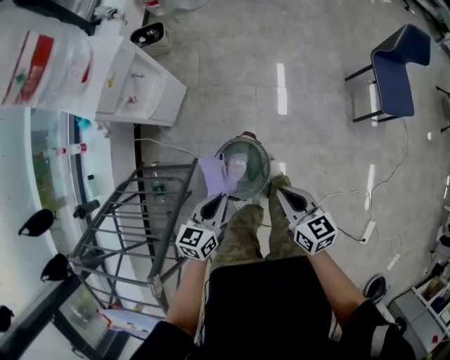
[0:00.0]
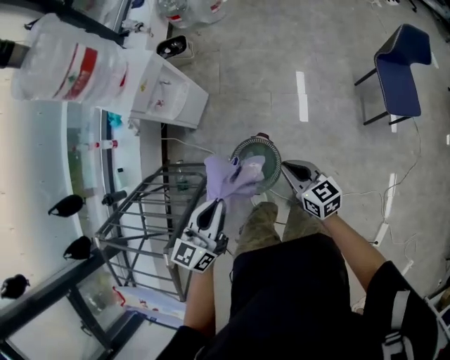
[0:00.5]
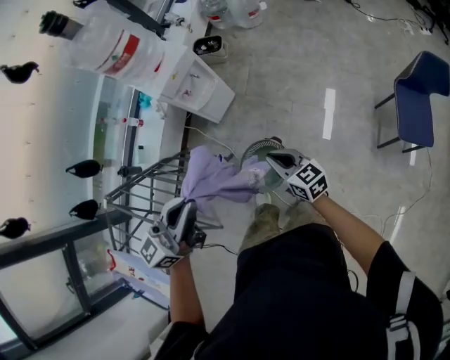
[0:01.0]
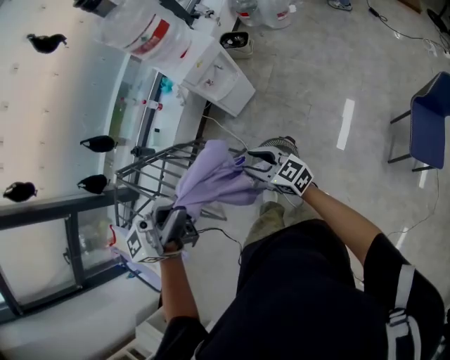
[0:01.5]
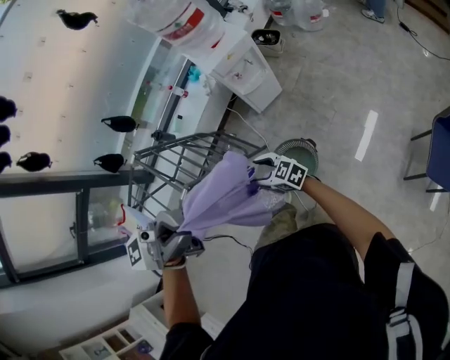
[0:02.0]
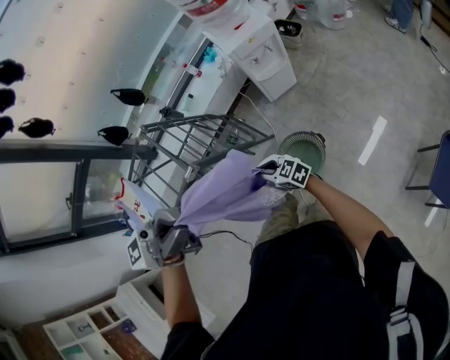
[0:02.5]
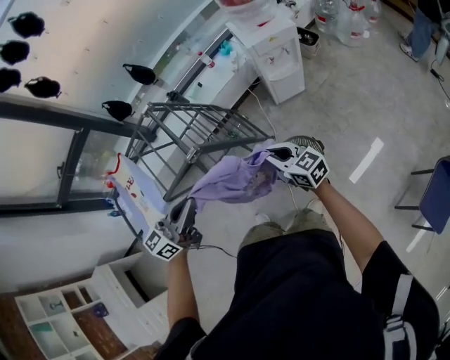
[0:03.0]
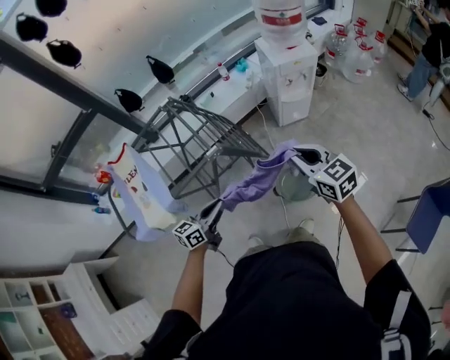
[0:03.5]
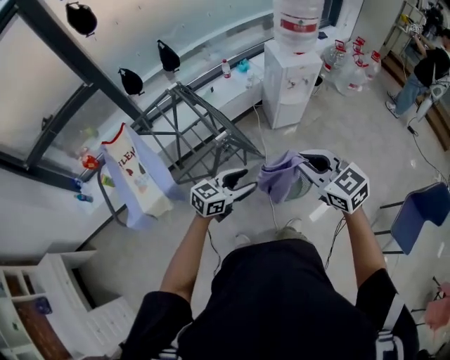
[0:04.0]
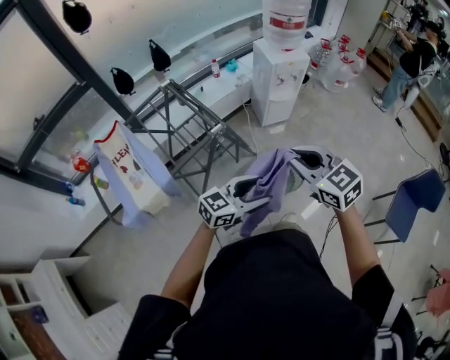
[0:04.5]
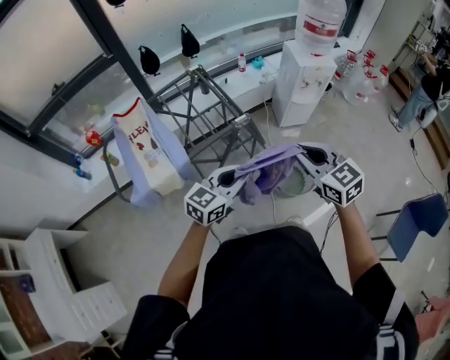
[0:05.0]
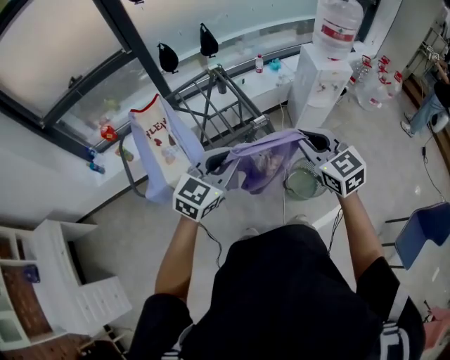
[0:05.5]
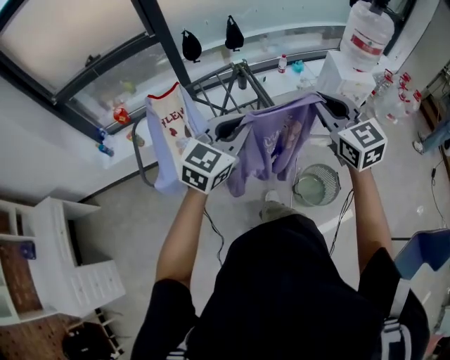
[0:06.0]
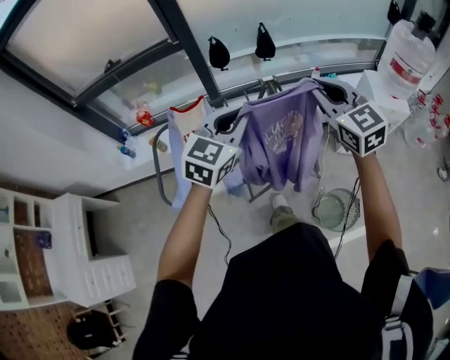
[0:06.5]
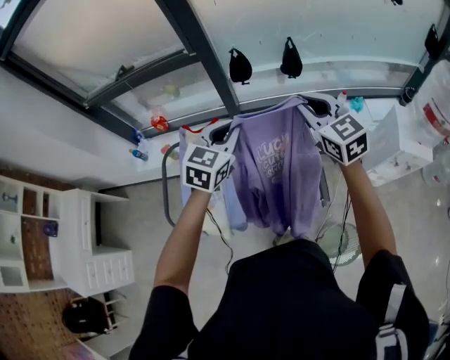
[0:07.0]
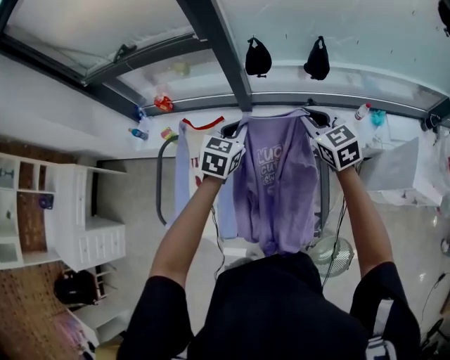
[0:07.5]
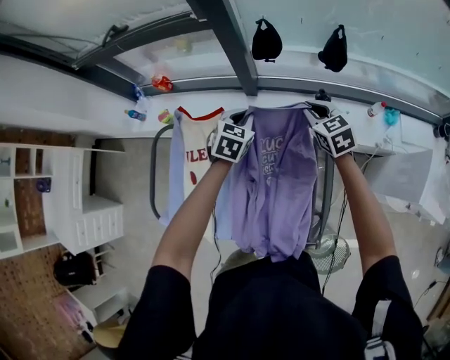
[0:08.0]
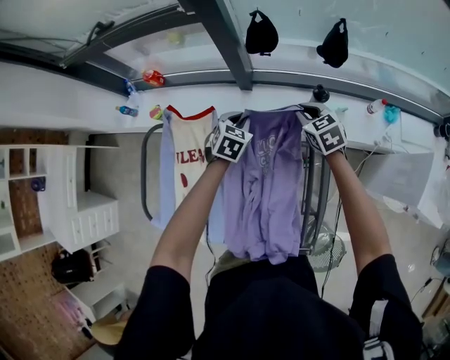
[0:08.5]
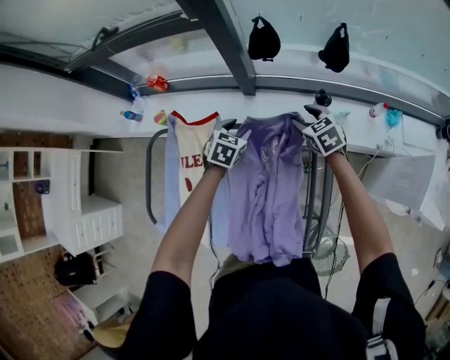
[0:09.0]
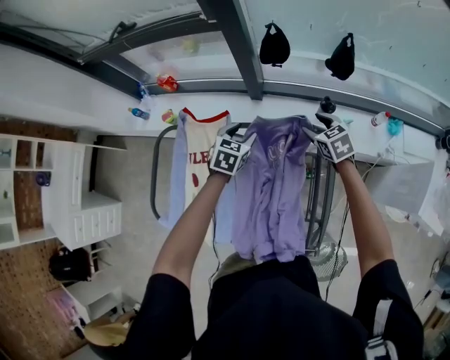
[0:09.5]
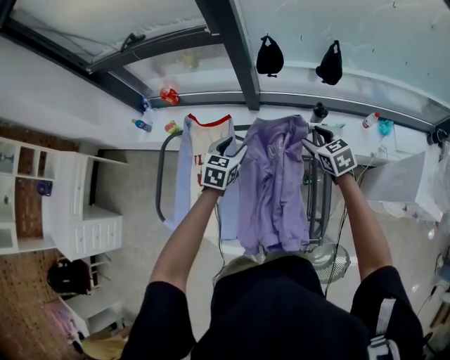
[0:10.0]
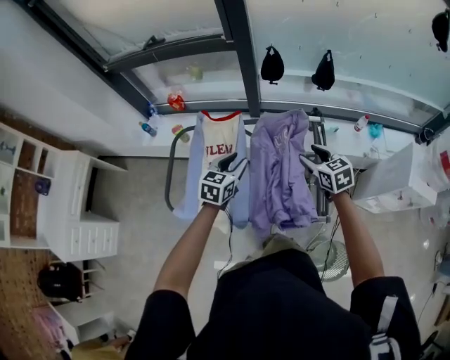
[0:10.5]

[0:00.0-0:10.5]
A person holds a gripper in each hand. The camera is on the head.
0:00.0 to 0:02.0: The right gripper ends up roughly 20 cm from where it was, swivels about 80 degrees, and opens up. The left gripper moves upward, about 60 cm, and tilts its fingers some 50 degrees upward.
0:02.0 to 0:04.0: The left gripper moves downward, about 30 cm, points its fingers approximately 30 degrees further downward, and opens up; the right gripper heads upward, covering roughly 25 cm, turns by roughly 20 degrees, and closes.
0:04.0 to 0:06.5: The left gripper changes place by some 40 cm, turns by approximately 50 degrees, and closes; the right gripper shifts by approximately 40 cm, and changes its angle by some 20 degrees.
0:06.5 to 0:08.5: The left gripper travels downward by approximately 35 cm, and points its fingers approximately 40 degrees further downward. Meanwhile the right gripper ends up some 60 cm from where it was, and tips its fingers downward by approximately 30 degrees.
0:08.5 to 0:10.5: The right gripper goes roughly 25 cm backward and upward, and opens its fingers. The left gripper heads backward, upward and to the left, covering roughly 30 cm, rotates approximately 20 degrees, and opens.

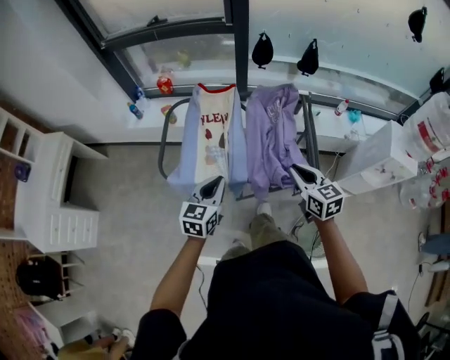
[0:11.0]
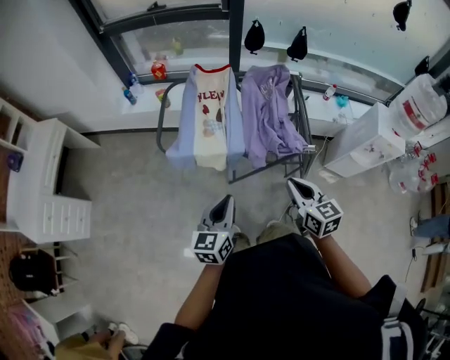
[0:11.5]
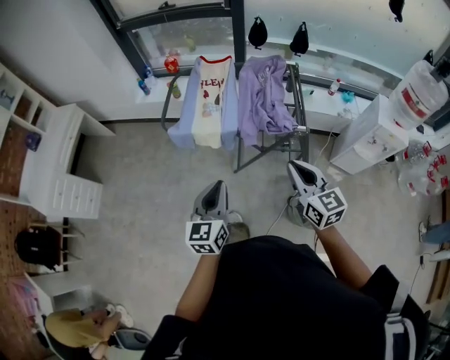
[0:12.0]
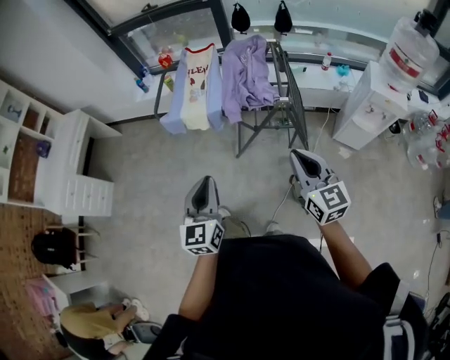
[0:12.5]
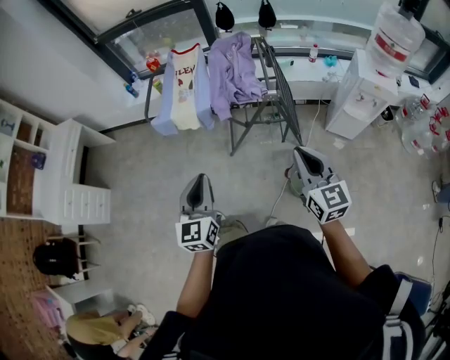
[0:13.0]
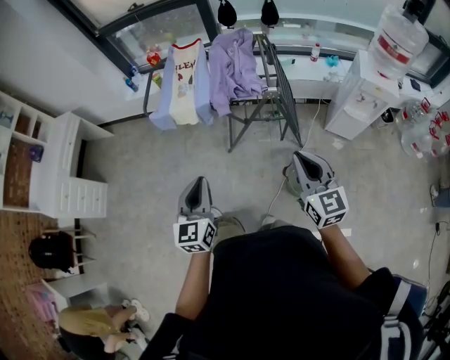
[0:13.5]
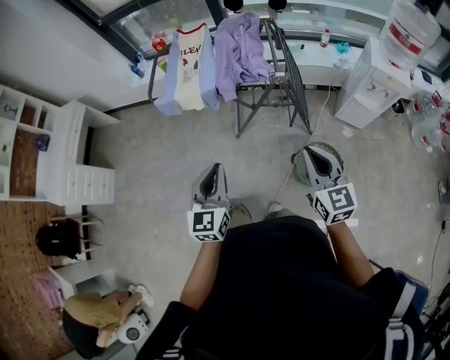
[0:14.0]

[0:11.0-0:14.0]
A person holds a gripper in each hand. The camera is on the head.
0:11.0 to 0:12.5: The two grippers go approximately 35 cm backward. The left gripper changes its angle by approximately 20 degrees.
0:12.5 to 0:14.0: The left gripper changes place by roughly 5 cm. The right gripper heads backward, covering roughly 5 cm.

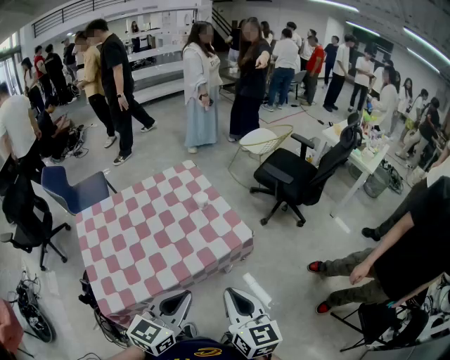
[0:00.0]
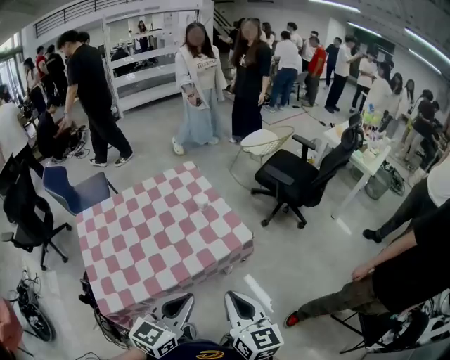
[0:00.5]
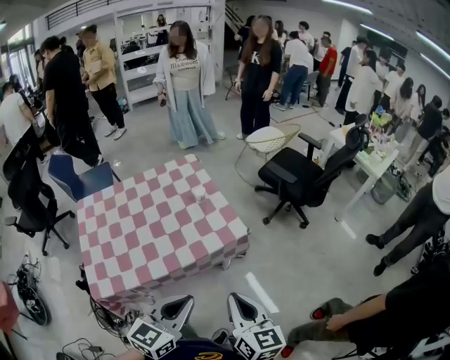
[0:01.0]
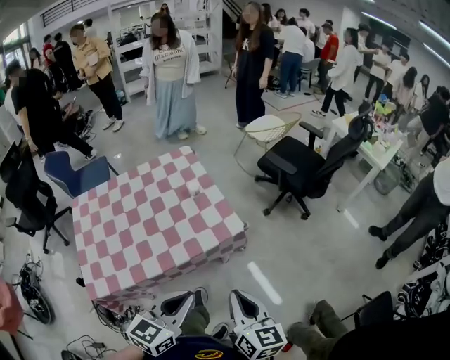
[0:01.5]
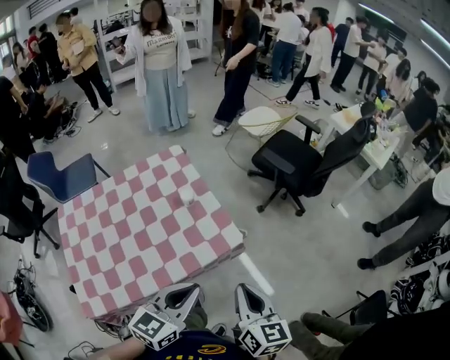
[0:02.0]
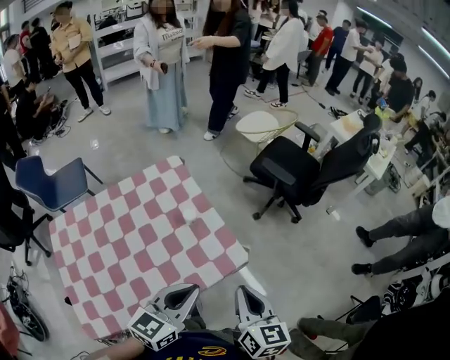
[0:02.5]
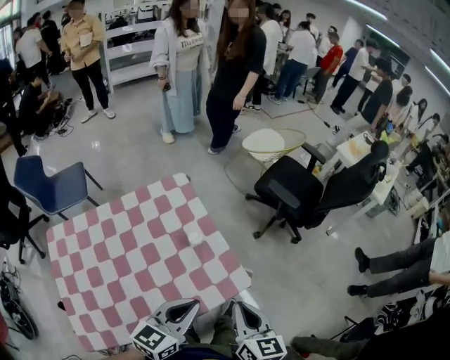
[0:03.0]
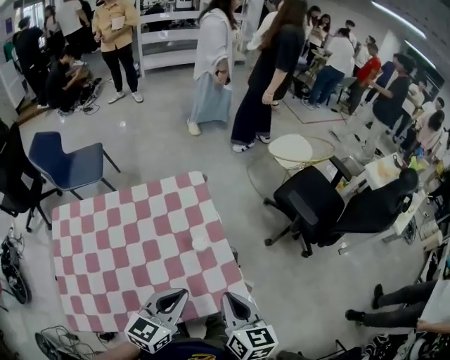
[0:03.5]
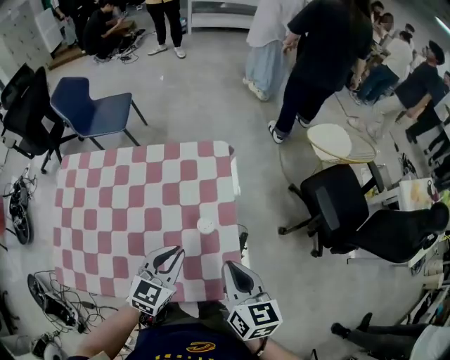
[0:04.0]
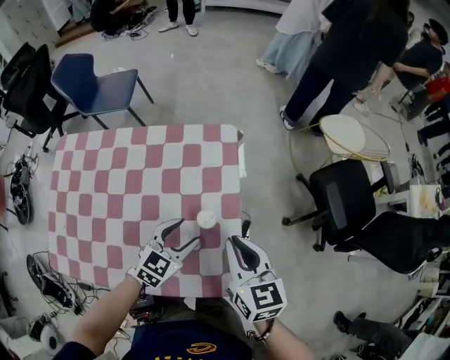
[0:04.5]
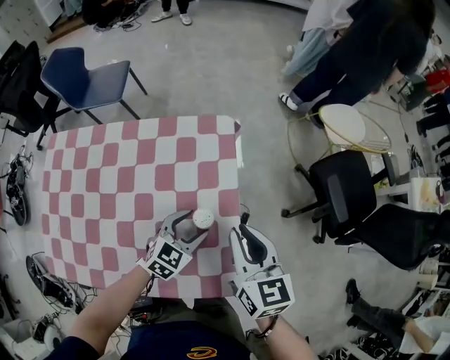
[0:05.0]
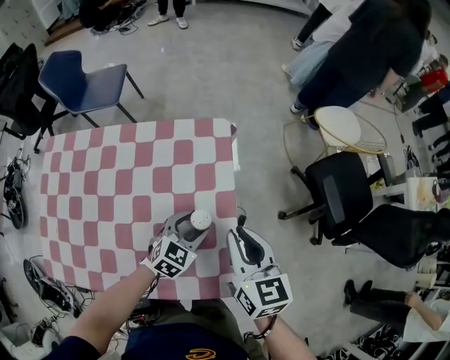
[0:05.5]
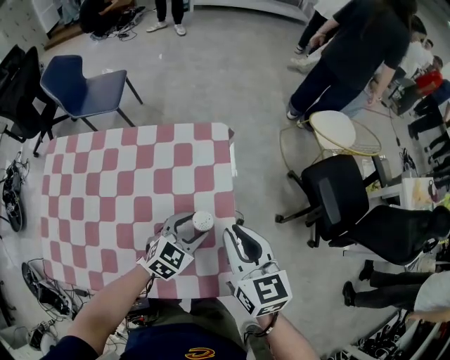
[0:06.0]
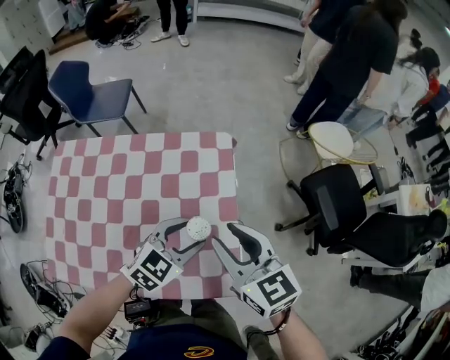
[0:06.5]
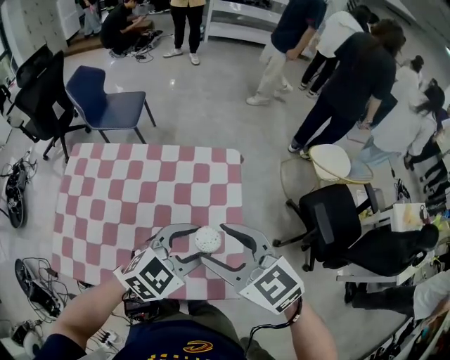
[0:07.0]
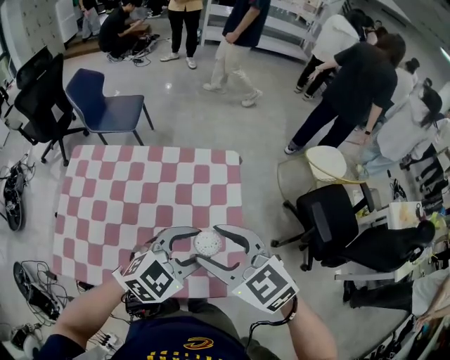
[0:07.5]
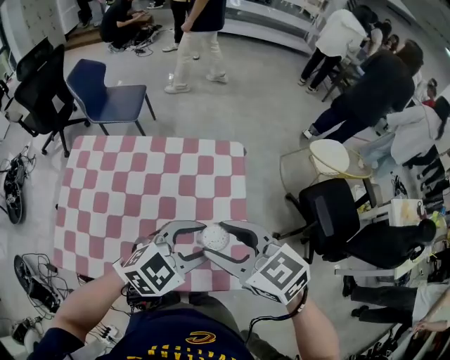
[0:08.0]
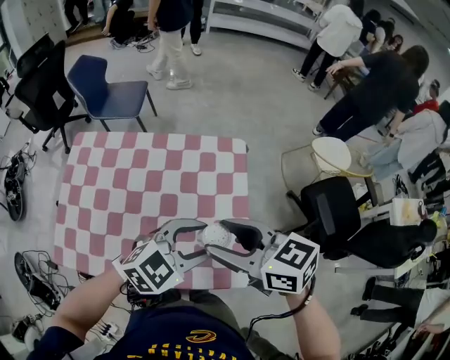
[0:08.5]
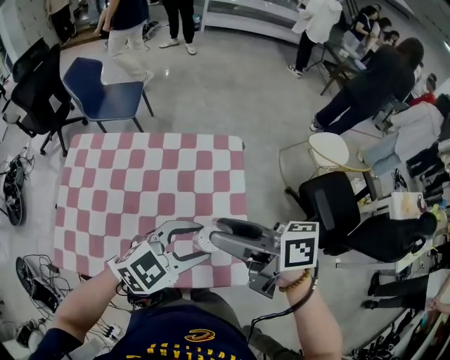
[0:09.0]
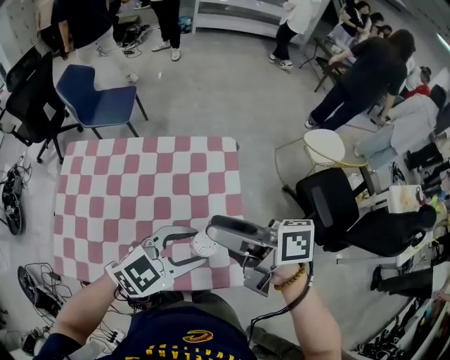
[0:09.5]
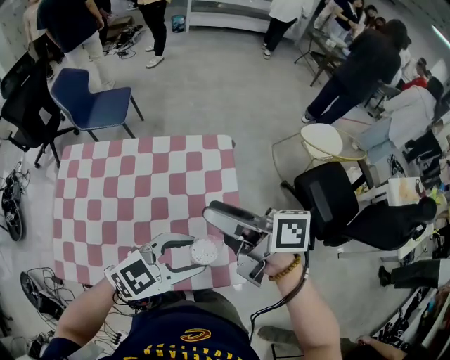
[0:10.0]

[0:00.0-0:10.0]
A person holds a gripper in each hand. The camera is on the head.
0:00.0 to 0:02.0: Both grippers travel together forward and to the right, approximately 15 cm.
0:02.0 to 0:04.0: The left gripper changes place by some 30 cm, and rotates some 30 degrees, while the right gripper ends up roughly 30 cm from where it was, and swivels approximately 30 degrees.
0:04.0 to 0:06.0: The left gripper heads downward, forward and to the right, covering approximately 15 cm, and opens up; the right gripper goes about 10 cm forward.
0:06.0 to 0:08.0: The left gripper travels upward and backward by about 20 cm. The right gripper goes roughly 15 cm to the left, upward and backward, swivels roughly 40 degrees, and opens.
0:08.0 to 0:10.0: The right gripper shifts by some 5 cm, and rolls clockwise, seen from behind, by approximately 50 degrees.

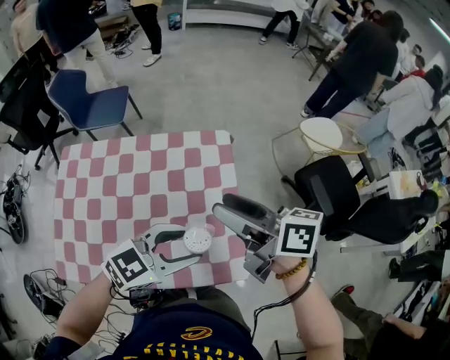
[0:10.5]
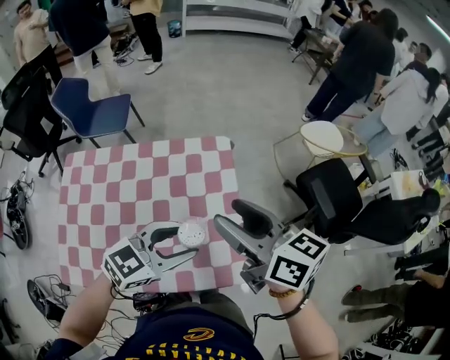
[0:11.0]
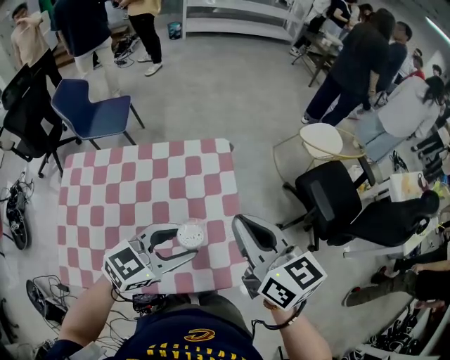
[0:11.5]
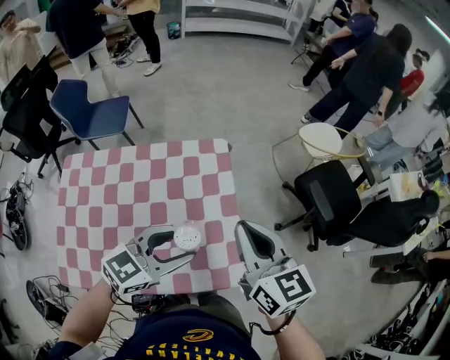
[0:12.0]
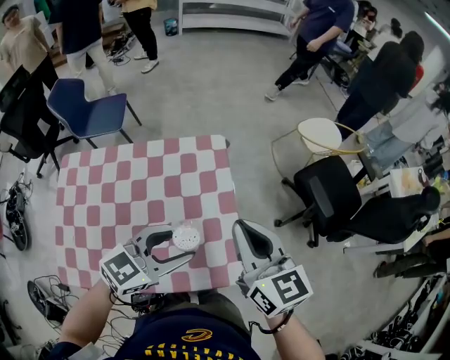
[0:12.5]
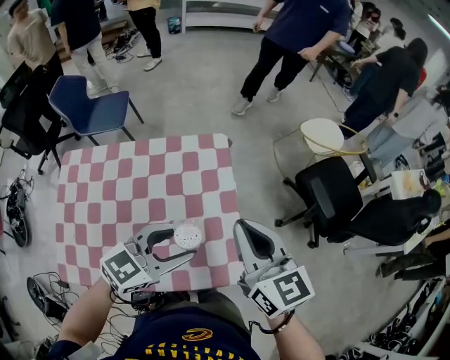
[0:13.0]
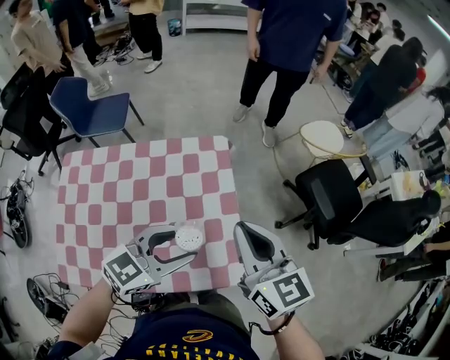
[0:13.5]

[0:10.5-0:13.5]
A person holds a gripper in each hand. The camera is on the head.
0:10.5 to 0:12.0: The right gripper is displaced to the right by some 5 cm, rotates approximately 50 degrees, and closes up.
0:12.0 to 0:13.5: The two grippers keep their place.
